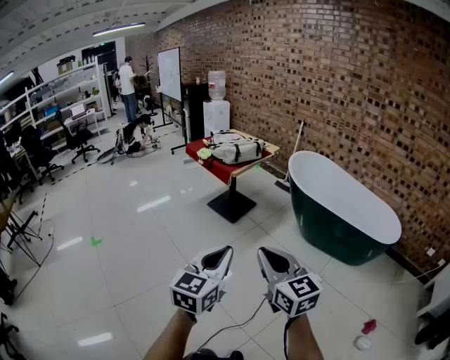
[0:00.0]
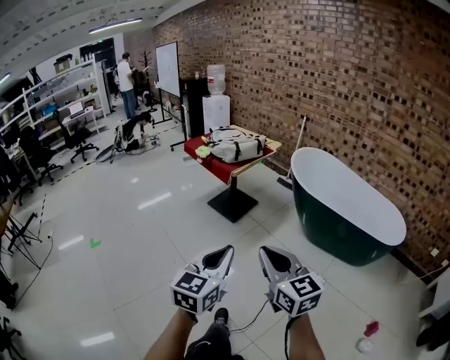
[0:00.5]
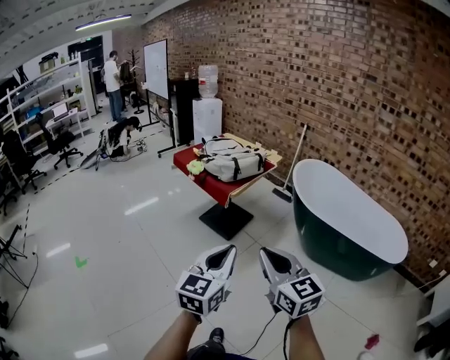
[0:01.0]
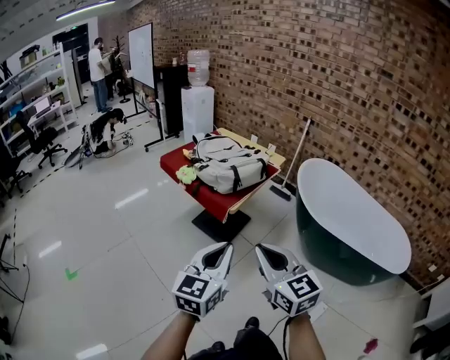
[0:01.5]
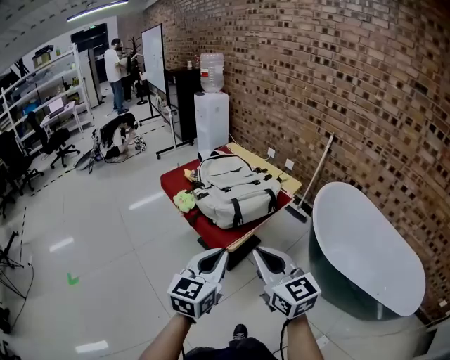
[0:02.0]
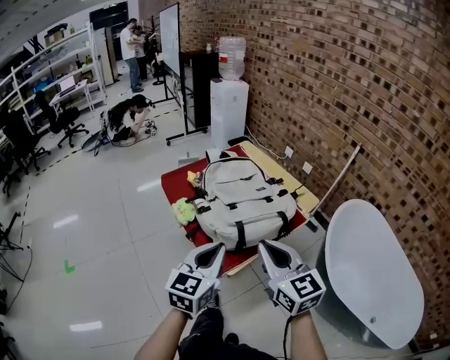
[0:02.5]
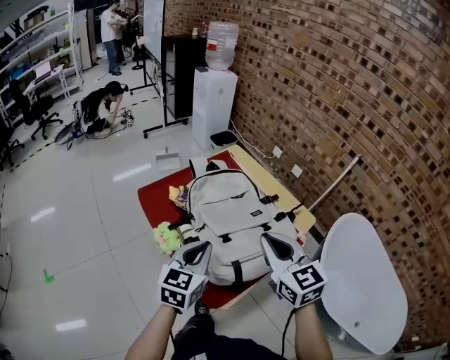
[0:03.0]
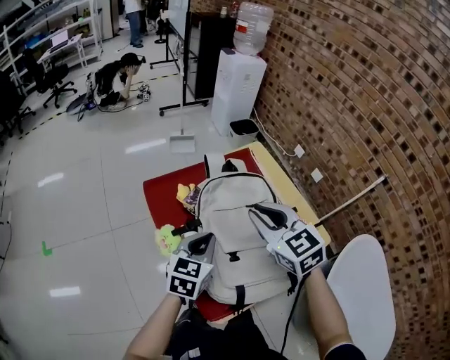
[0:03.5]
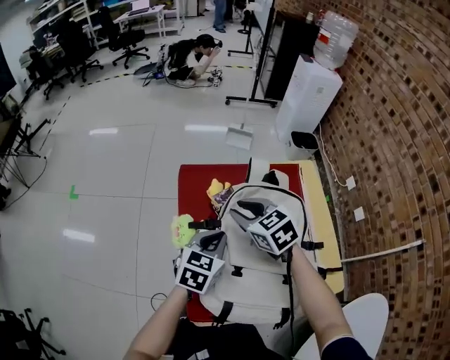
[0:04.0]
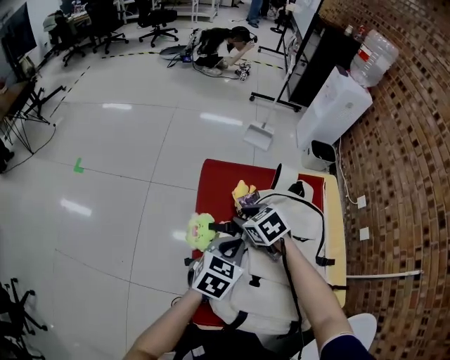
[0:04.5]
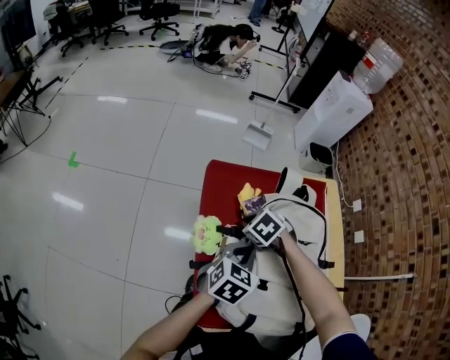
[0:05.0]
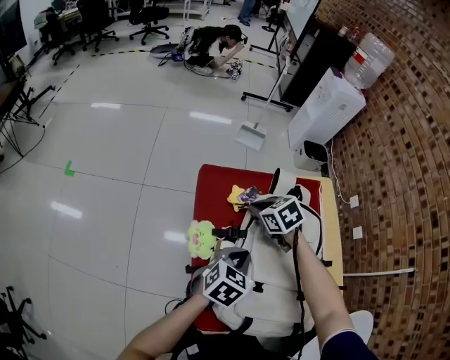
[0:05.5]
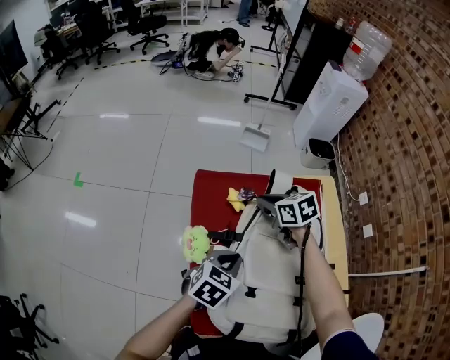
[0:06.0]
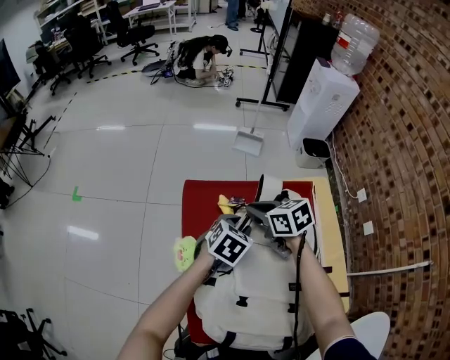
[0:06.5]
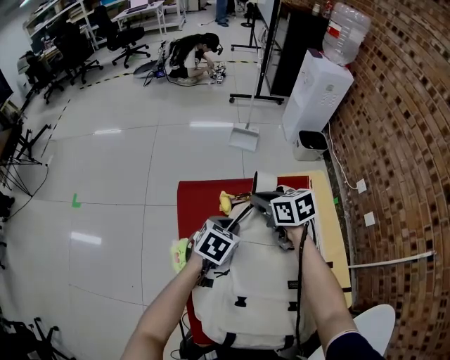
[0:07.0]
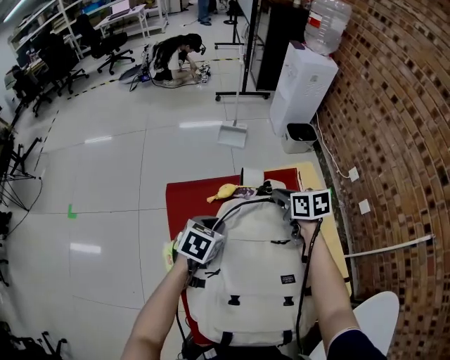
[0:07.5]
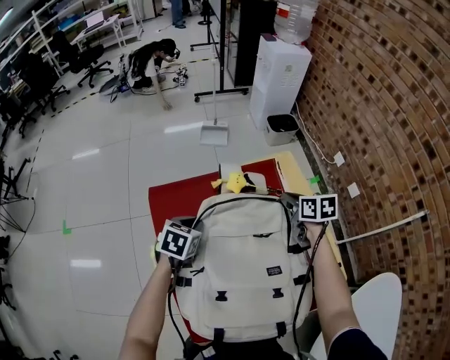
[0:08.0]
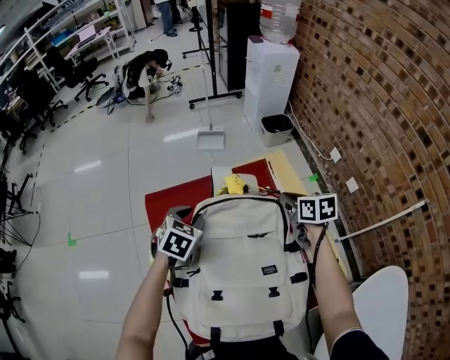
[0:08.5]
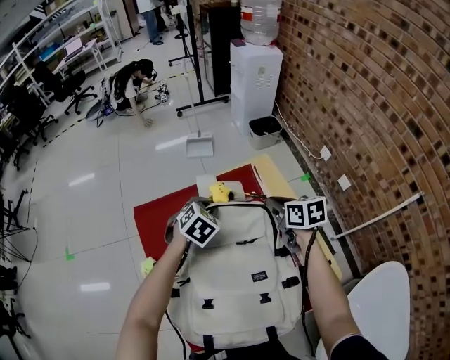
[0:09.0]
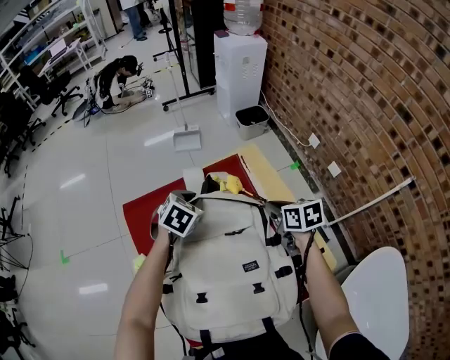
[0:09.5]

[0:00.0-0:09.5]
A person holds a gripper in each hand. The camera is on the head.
0:00.0 to 0:02.0: The two grippers travel together, forward, about 60 cm.
0:02.0 to 0:04.0: The pair of grippers is taken roughly 50 cm. The left gripper swivels roughly 40 degrees. Meanwhile the right gripper points its fingers some 30 degrees further downward, and opens up.
0:04.0 to 0:05.5: The right gripper is displaced downward and forward by roughly 10 cm, rotates about 20 degrees, and closes.
0:05.5 to 0:07.5: The right gripper moves to the right, about 20 cm, and rotates about 40 degrees. The left gripper heads forward, covering roughly 15 cm, and opens, then closes once more.
0:07.5 to 0:09.5: The left gripper shifts about 15 cm to the right and forward, and turns by roughly 20 degrees. The right gripper moves to the right and backward, approximately 20 cm.

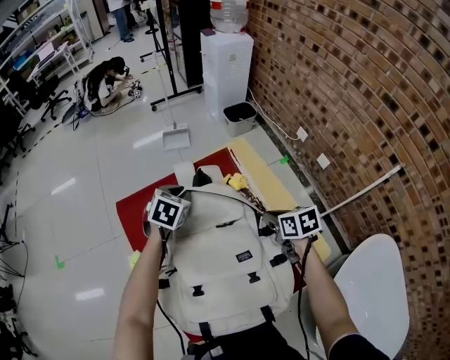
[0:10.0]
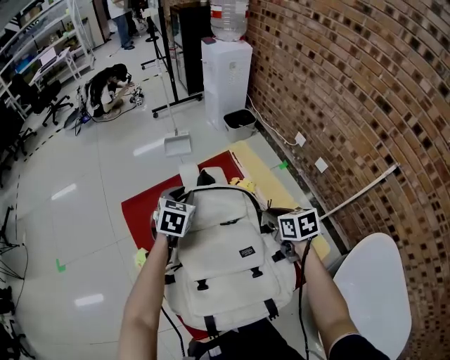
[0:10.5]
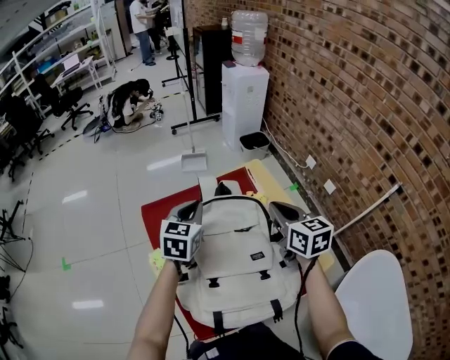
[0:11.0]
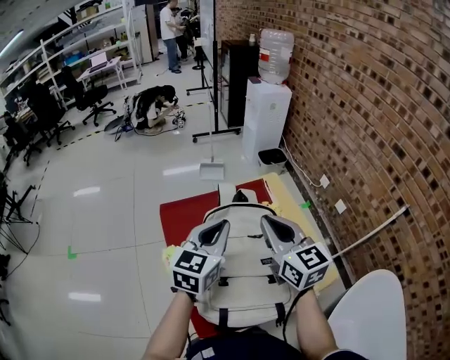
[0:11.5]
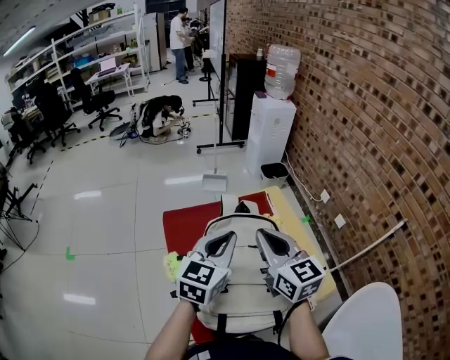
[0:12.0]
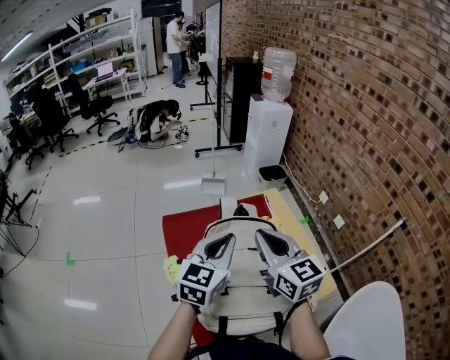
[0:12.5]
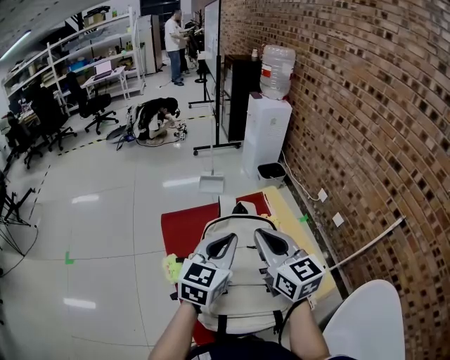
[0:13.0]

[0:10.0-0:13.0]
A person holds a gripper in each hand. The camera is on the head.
0:10.0 to 0:11.5: The left gripper moves upward and backward, about 25 cm, and tips its fingers upward by roughly 40 degrees, while the right gripper travels upward and to the left by some 30 cm, and angles its fingers upward, by about 40 degrees.
0:11.5 to 0:13.0: There are only small adjustments of the grippers.

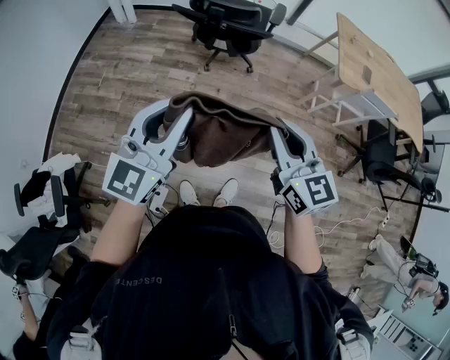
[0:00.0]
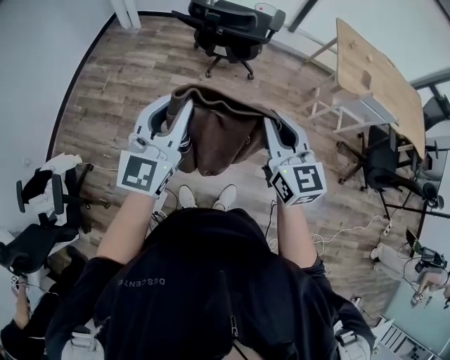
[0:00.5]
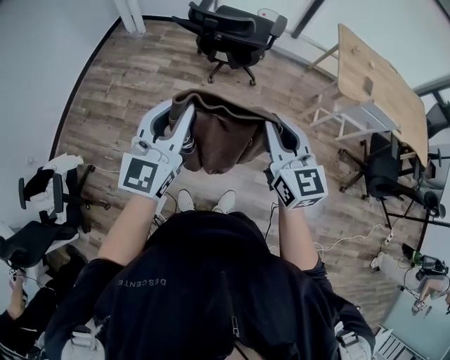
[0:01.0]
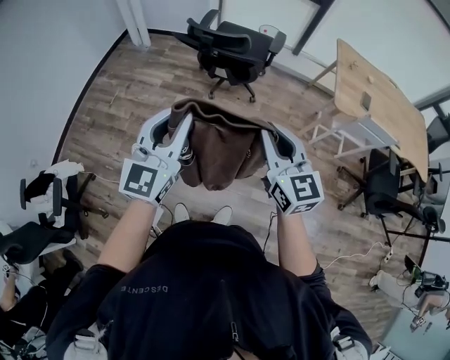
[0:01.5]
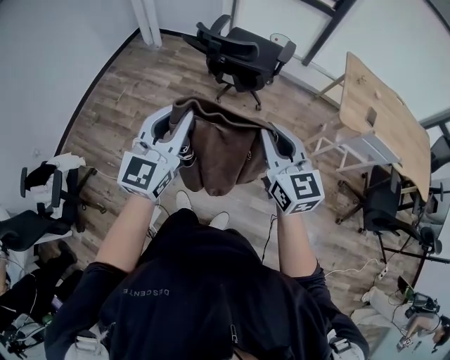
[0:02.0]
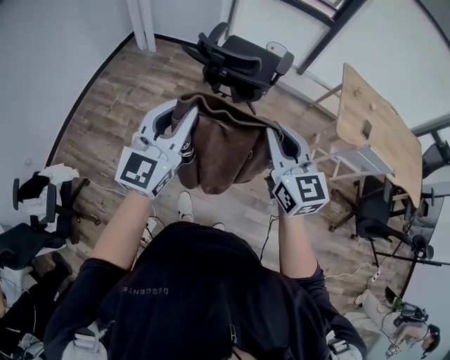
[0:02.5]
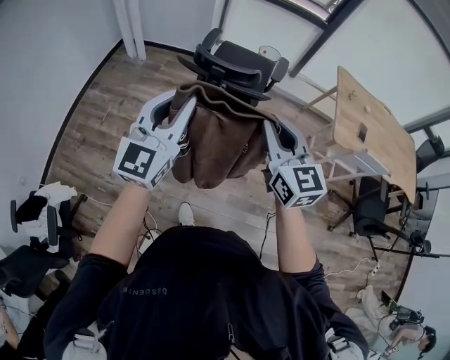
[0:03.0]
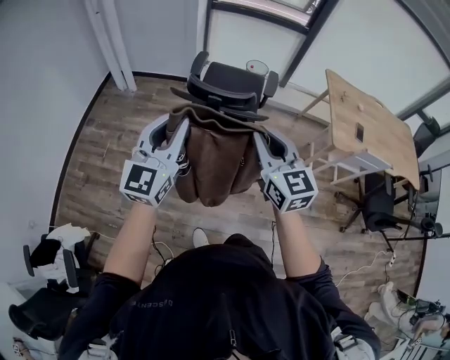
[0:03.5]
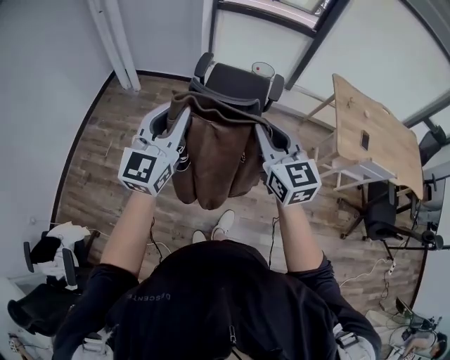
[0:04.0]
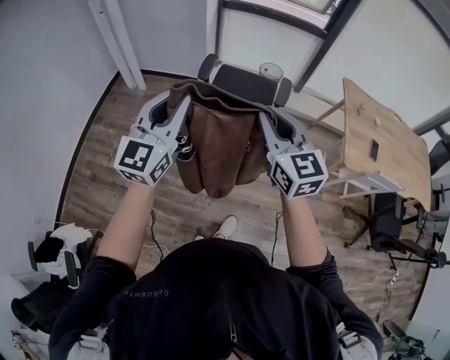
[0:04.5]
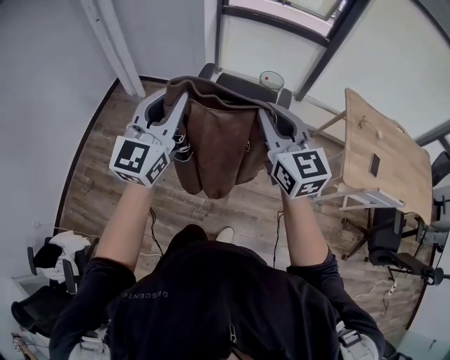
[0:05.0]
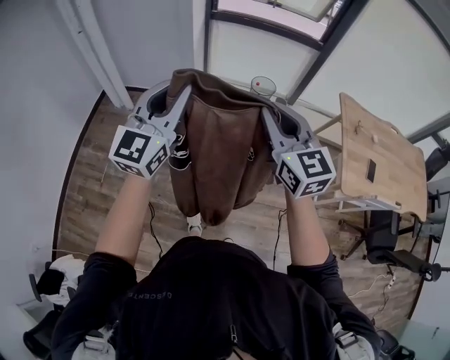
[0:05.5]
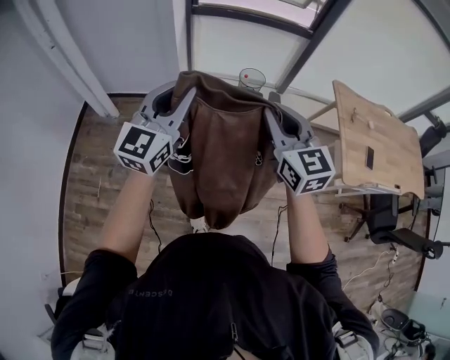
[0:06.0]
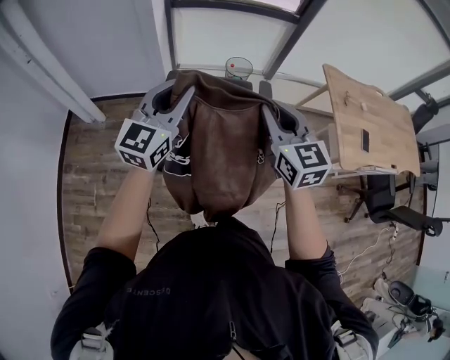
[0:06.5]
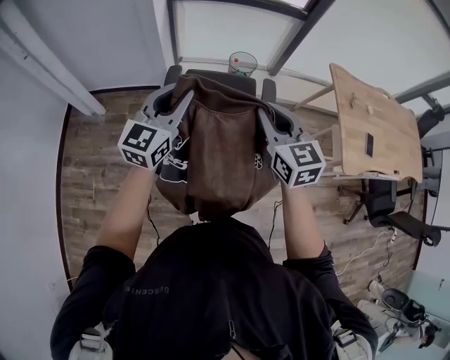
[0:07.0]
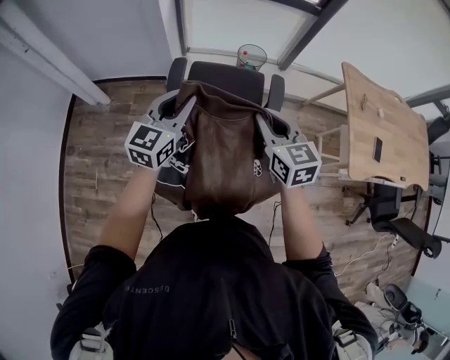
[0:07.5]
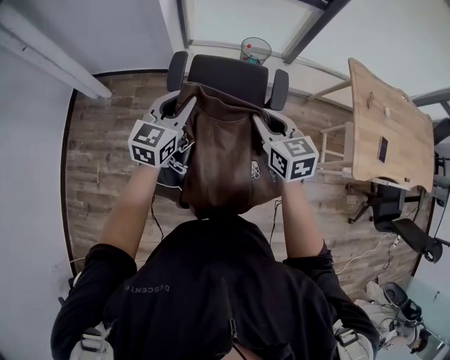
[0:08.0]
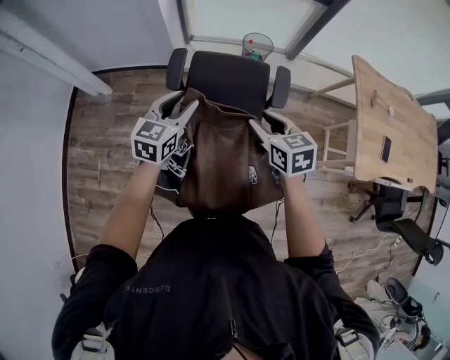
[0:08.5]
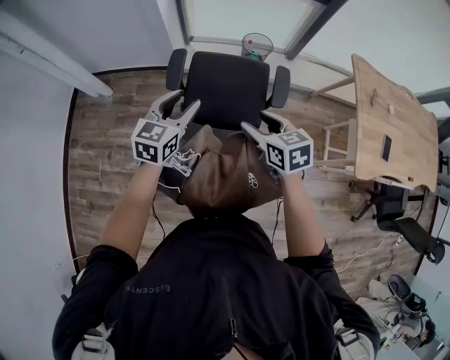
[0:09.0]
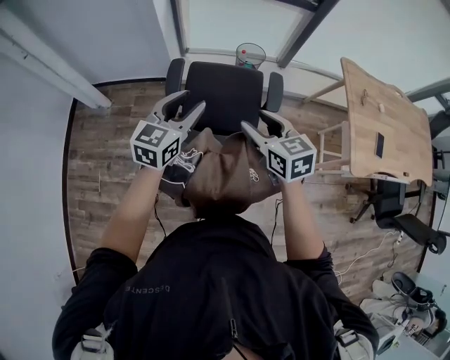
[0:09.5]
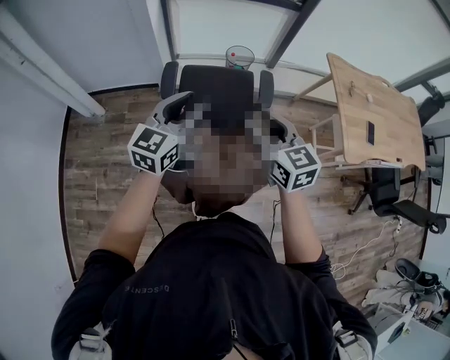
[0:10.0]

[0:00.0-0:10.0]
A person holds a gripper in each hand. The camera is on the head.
0:00.0 to 0:02.0: The left gripper heads to the right, covering roughly 10 cm. The right gripper shifts about 10 cm to the right and forward.
0:02.0 to 0:04.0: The grippers both shift forward and to the left by some 30 cm.
0:04.0 to 0:06.0: The two grippers go approximately 35 cm forward.
0:06.0 to 0:08.0: Both grippers travel together downward and forward, about 20 cm. The right gripper changes its angle by about 20 degrees, while the left gripper turns by some 20 degrees.
0:08.0 to 0:10.0: Both grippers travel together backward and upward, about 10 cm. The right gripper opens, then closes once more.

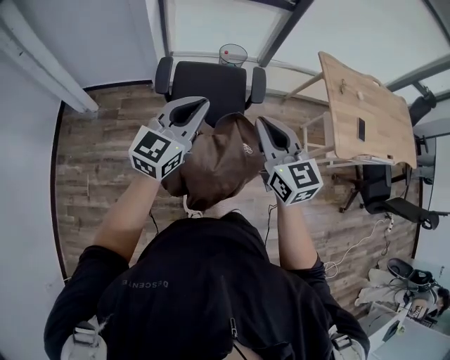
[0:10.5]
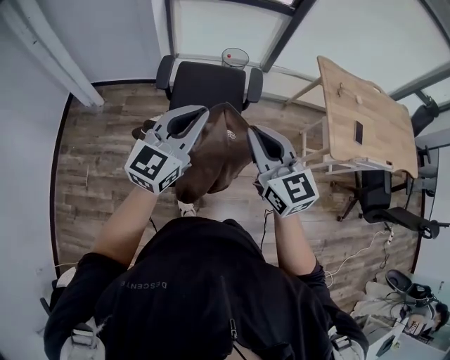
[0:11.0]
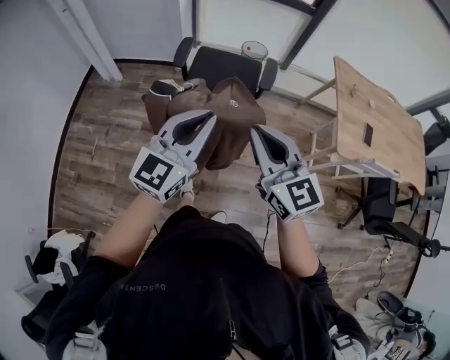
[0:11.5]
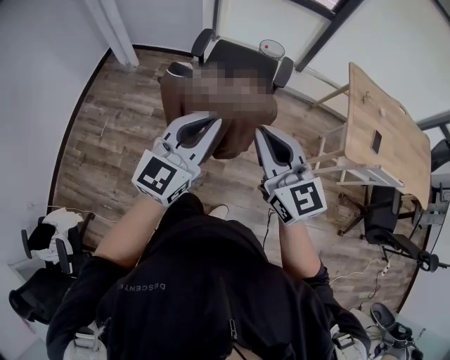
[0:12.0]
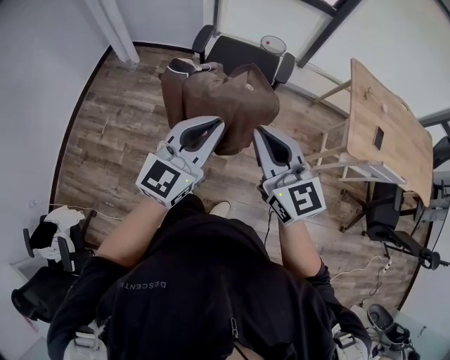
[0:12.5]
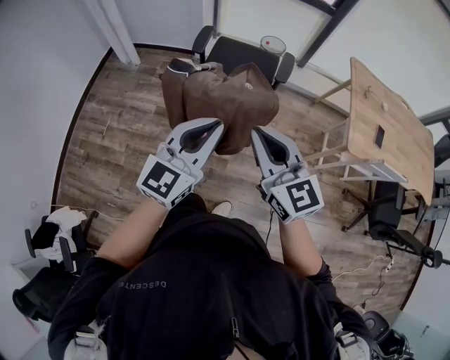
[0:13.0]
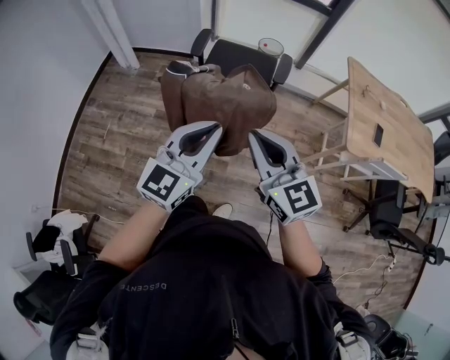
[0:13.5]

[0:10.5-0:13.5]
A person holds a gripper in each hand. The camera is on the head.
0:10.5 to 0:12.0: The grippers both shift backward by approximately 25 cm. The right gripper swivels some 20 degrees.
0:12.0 to 0:13.5: The grippers stay close to where they were, moving slightly.
